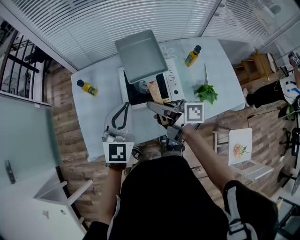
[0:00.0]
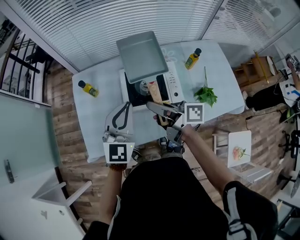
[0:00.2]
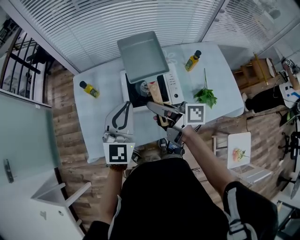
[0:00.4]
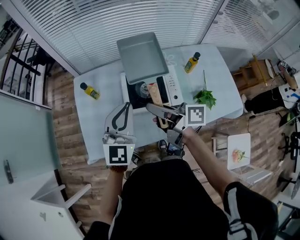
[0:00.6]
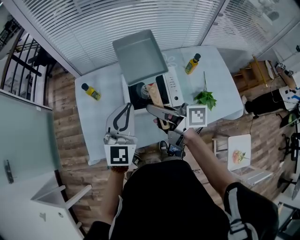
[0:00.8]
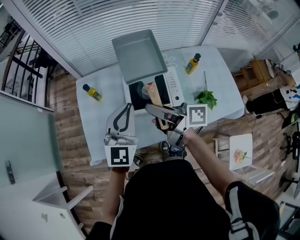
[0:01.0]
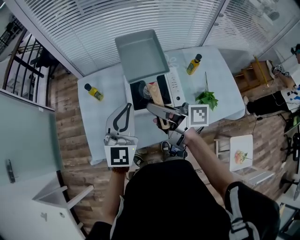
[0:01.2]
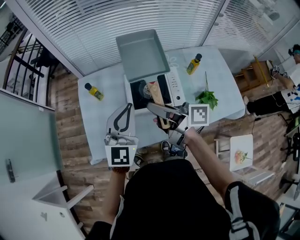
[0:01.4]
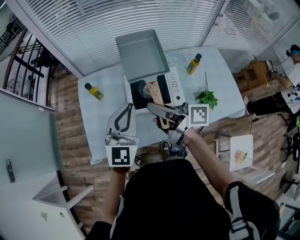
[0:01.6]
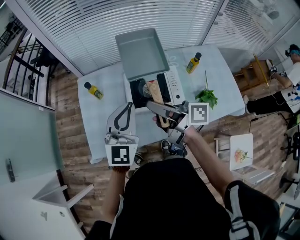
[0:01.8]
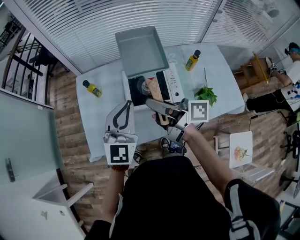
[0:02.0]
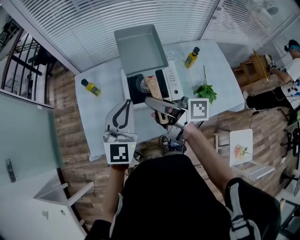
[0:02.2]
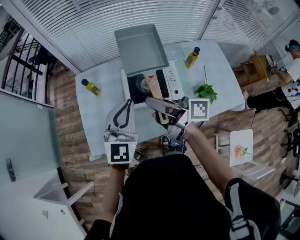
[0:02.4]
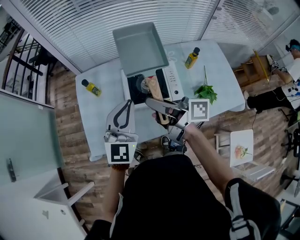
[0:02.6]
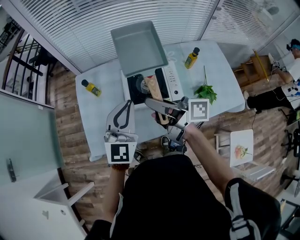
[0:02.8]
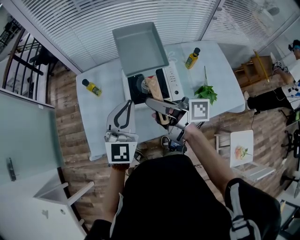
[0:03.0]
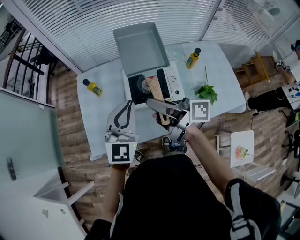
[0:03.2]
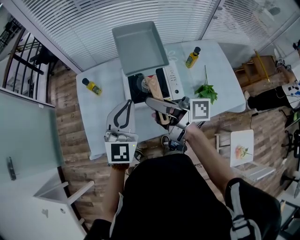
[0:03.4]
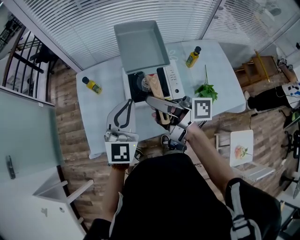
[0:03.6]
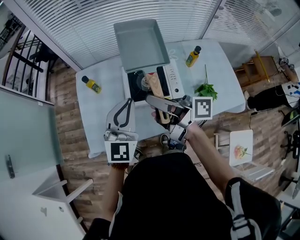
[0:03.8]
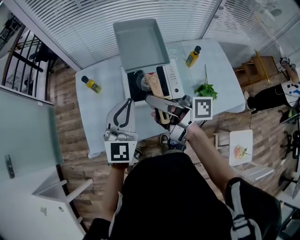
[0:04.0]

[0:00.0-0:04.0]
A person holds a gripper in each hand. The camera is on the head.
0:00.0 to 0:01.4: The right gripper goes approximately 5 cm upward.
0:01.4 to 0:02.6: The two grippers keep their place.
0:02.6 to 0:04.0: There are only small adjustments of the grippers.

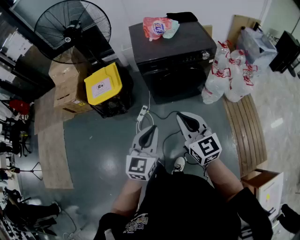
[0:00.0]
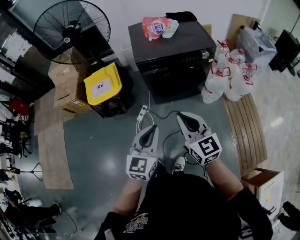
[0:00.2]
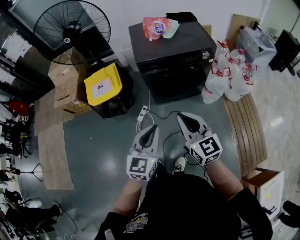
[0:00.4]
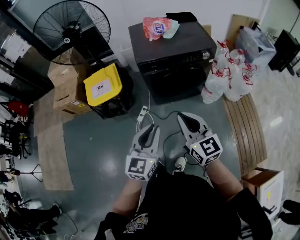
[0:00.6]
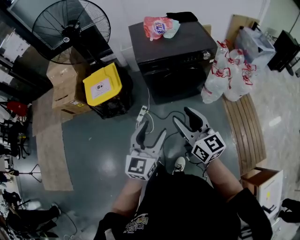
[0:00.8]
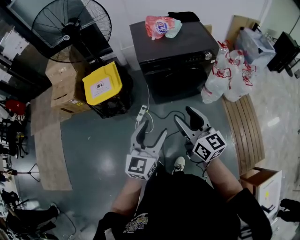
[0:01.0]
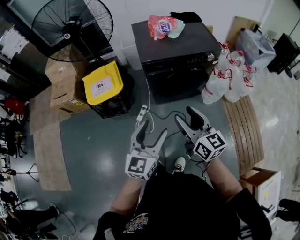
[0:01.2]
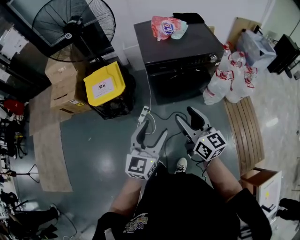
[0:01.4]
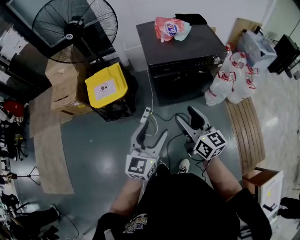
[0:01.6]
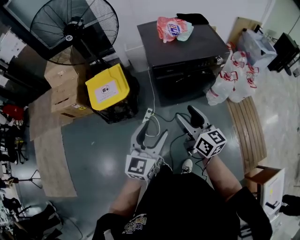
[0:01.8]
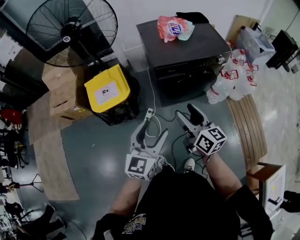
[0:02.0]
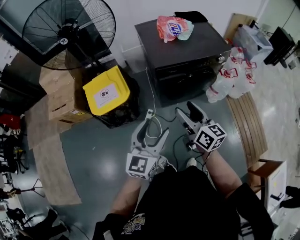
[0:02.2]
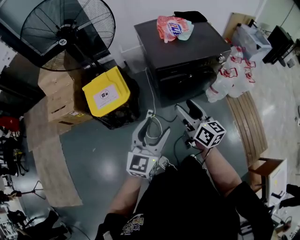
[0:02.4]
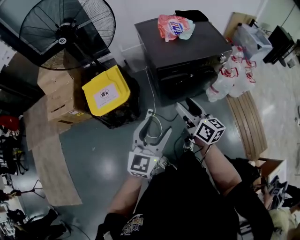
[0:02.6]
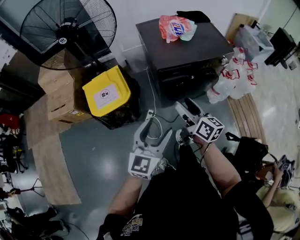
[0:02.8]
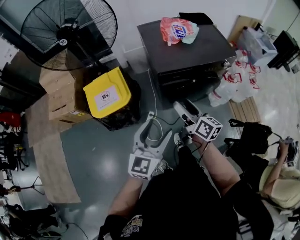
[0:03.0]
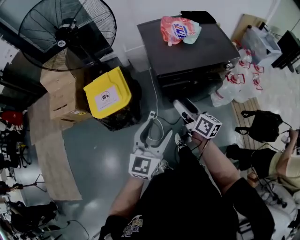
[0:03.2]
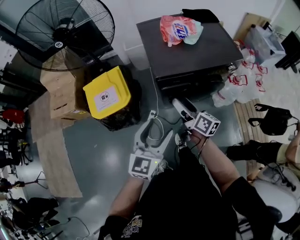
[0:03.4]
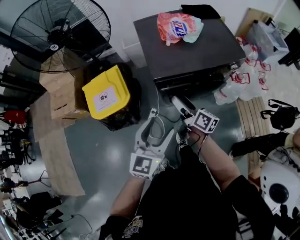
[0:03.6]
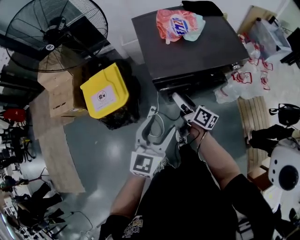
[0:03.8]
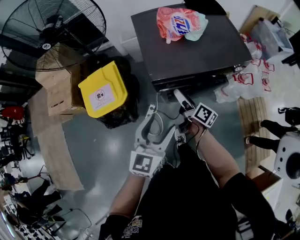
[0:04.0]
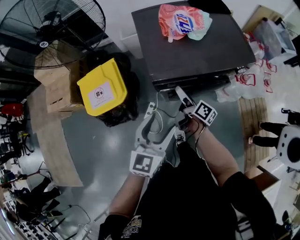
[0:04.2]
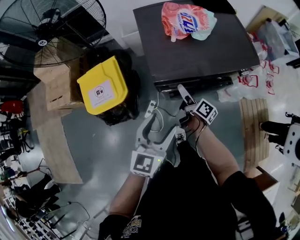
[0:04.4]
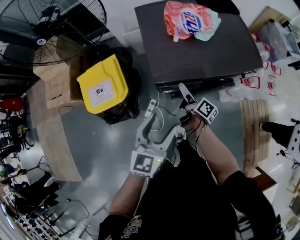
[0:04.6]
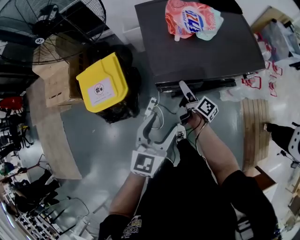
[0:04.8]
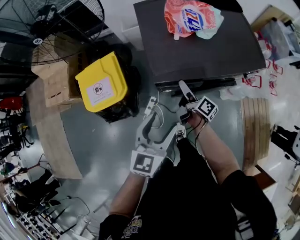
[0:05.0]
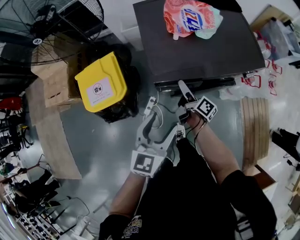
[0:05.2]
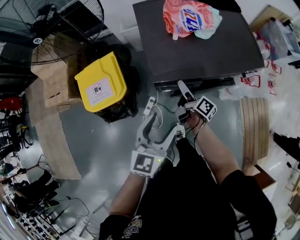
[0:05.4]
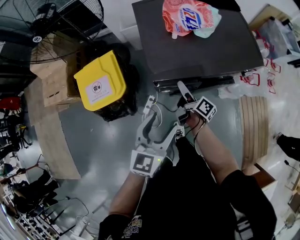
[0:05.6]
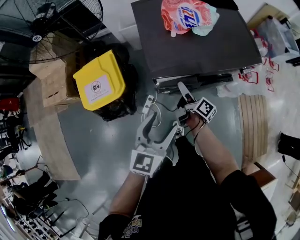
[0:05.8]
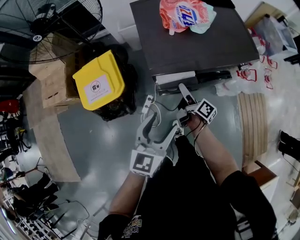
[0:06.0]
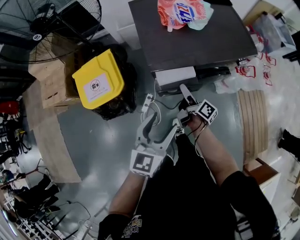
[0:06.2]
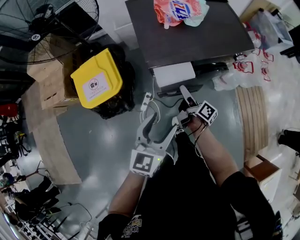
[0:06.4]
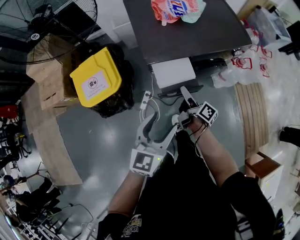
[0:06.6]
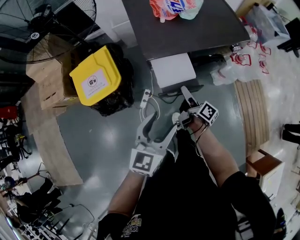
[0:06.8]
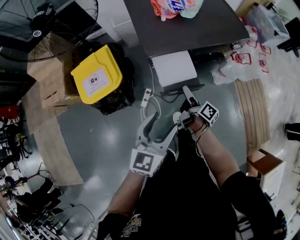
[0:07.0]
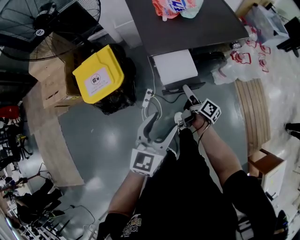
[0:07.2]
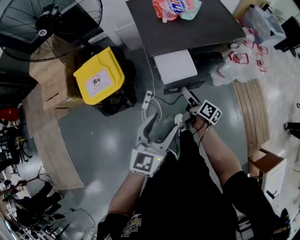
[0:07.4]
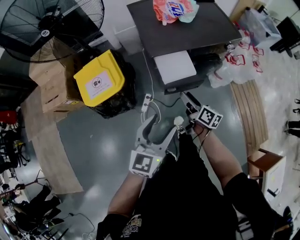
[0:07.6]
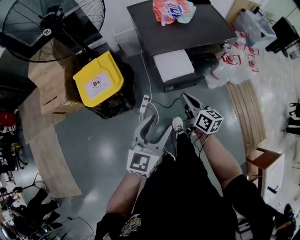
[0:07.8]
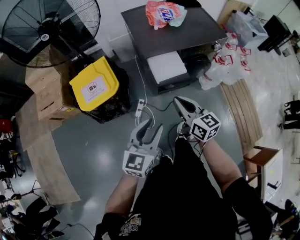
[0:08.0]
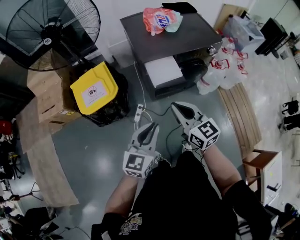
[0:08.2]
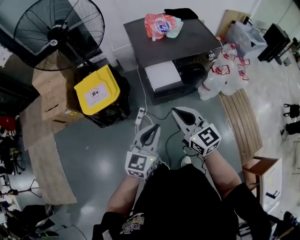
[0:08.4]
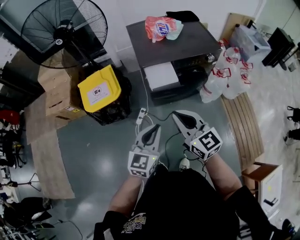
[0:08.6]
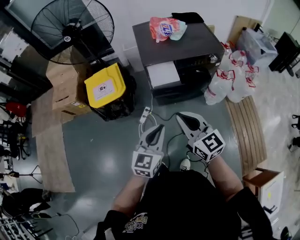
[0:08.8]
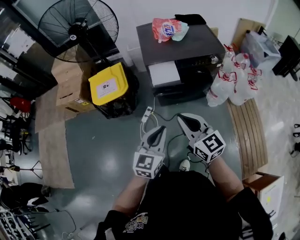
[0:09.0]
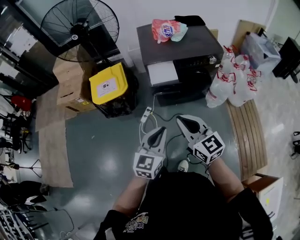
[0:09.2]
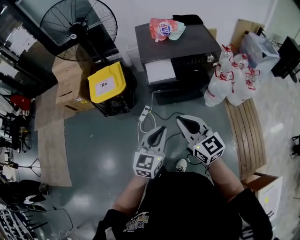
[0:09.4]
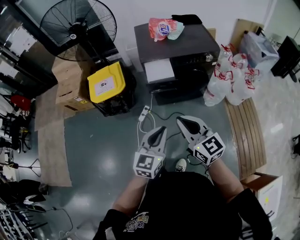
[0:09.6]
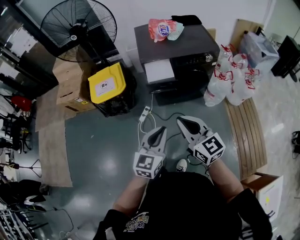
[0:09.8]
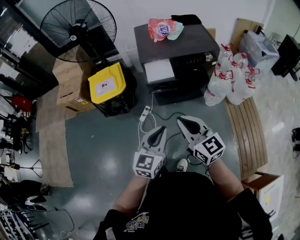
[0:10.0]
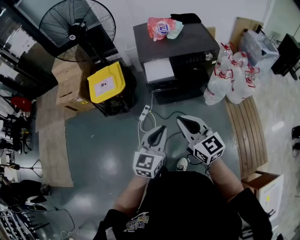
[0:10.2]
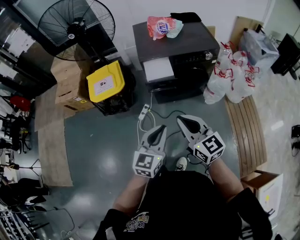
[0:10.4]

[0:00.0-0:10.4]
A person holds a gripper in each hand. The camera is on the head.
0:00.0 to 0:01.4: The left gripper travels to the left by some 5 cm, and opens. The right gripper goes about 5 cm to the left and forward, and opens up.
0:01.4 to 0:03.0: Both grippers travel together forward and to the left, approximately 15 cm. The right gripper rotates roughly 30 degrees.
0:03.0 to 0:04.4: The left gripper travels forward and to the right by roughly 20 cm. The right gripper heads forward and downward, covering some 25 cm, and swivels about 30 degrees.
0:04.4 to 0:06.0: The grippers move only a little.
0:06.0 to 0:07.4: Both grippers travel together backward, roughly 10 cm.
0:07.4 to 0:09.0: The left gripper travels backward and to the right by roughly 15 cm, and closes up. Meanwhile the right gripper is displaced upward and backward by some 35 cm, twists some 60 degrees counterclockwise, seen from behind, and closes.
0:09.0 to 0:10.4: The right gripper ends up about 5 cm from where it was; the left gripper changes place by roughly 5 cm.

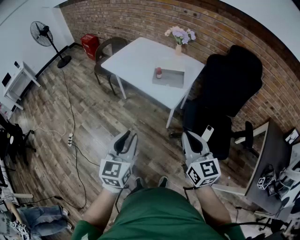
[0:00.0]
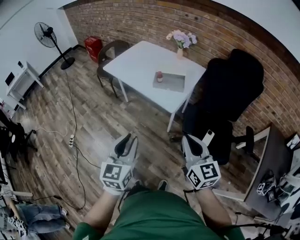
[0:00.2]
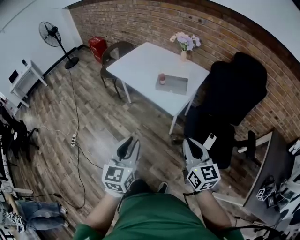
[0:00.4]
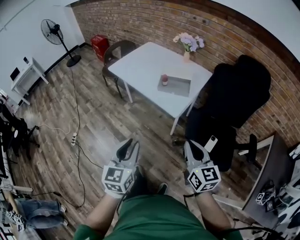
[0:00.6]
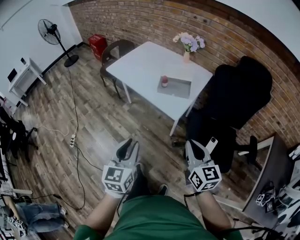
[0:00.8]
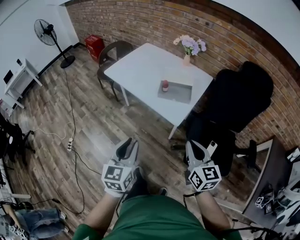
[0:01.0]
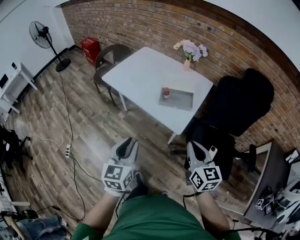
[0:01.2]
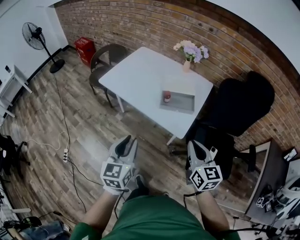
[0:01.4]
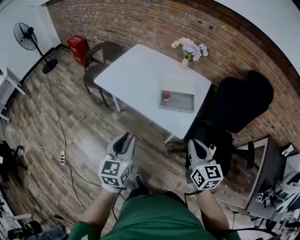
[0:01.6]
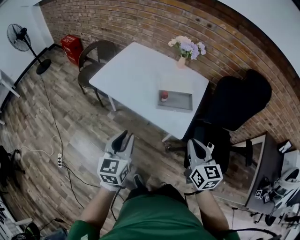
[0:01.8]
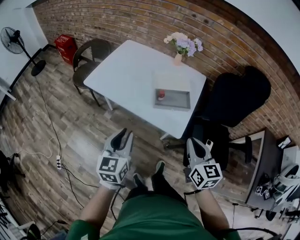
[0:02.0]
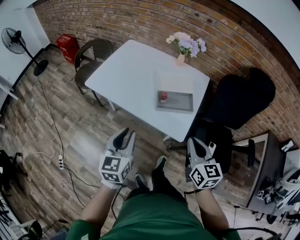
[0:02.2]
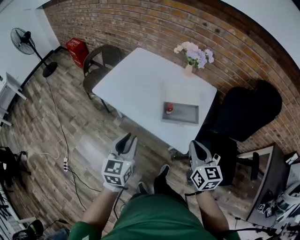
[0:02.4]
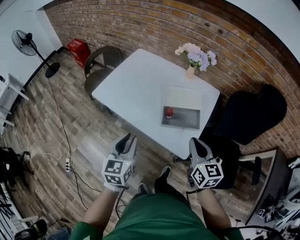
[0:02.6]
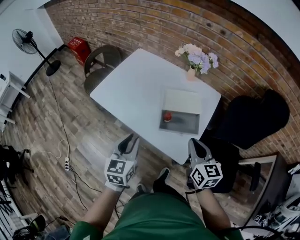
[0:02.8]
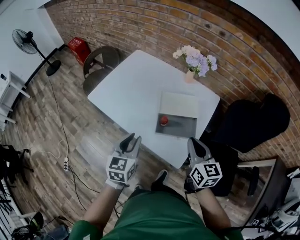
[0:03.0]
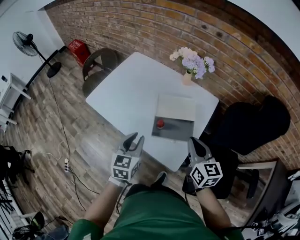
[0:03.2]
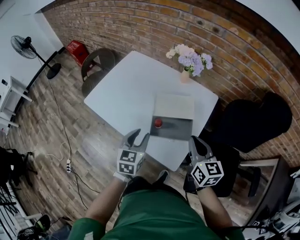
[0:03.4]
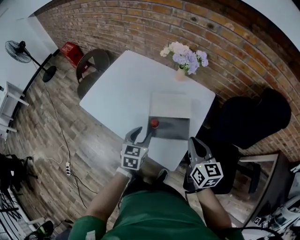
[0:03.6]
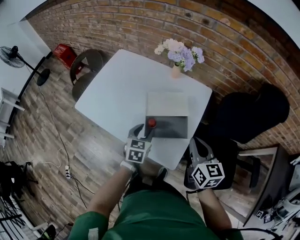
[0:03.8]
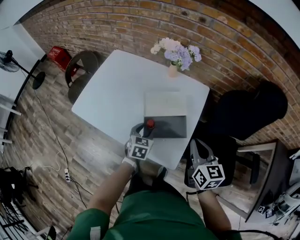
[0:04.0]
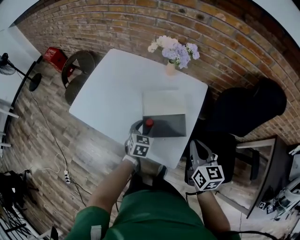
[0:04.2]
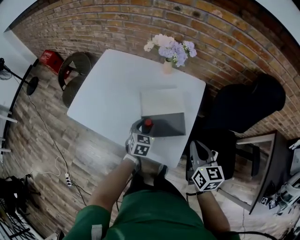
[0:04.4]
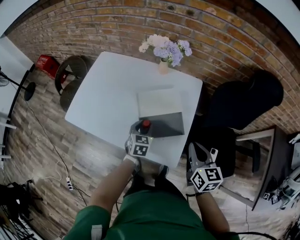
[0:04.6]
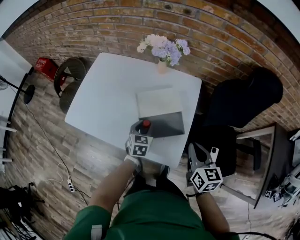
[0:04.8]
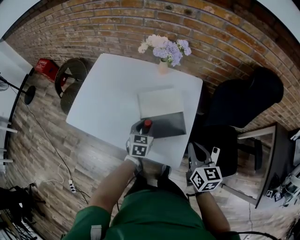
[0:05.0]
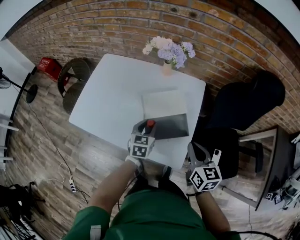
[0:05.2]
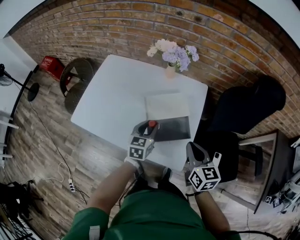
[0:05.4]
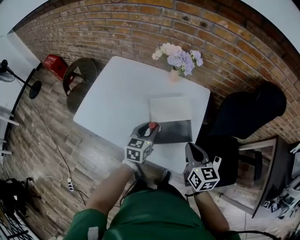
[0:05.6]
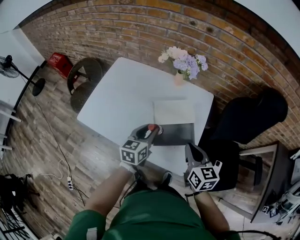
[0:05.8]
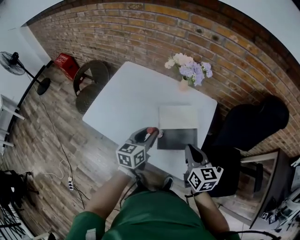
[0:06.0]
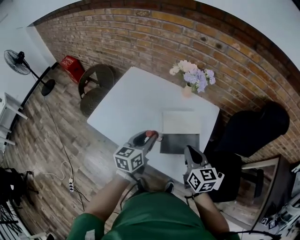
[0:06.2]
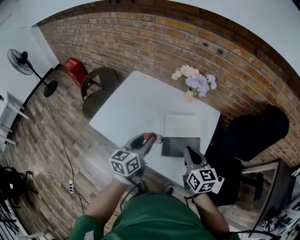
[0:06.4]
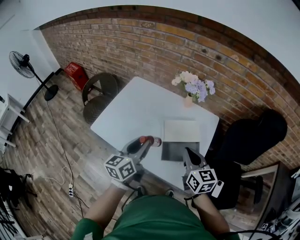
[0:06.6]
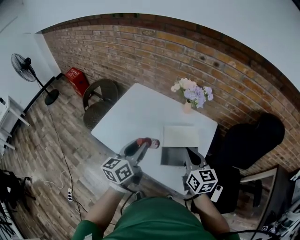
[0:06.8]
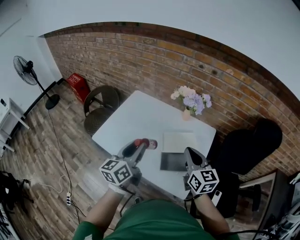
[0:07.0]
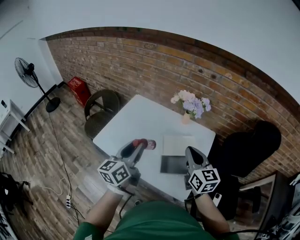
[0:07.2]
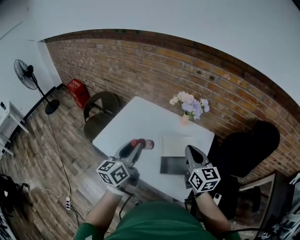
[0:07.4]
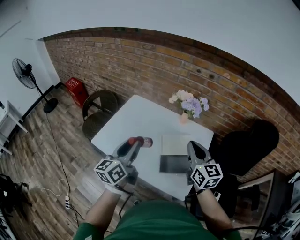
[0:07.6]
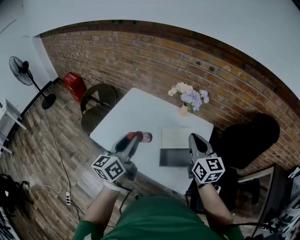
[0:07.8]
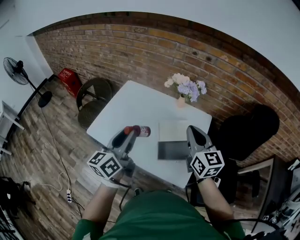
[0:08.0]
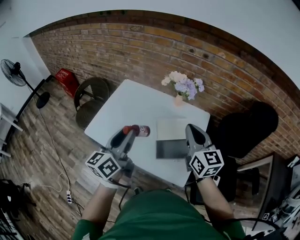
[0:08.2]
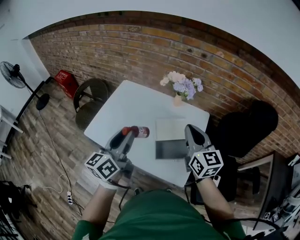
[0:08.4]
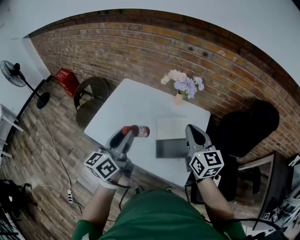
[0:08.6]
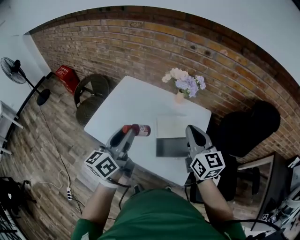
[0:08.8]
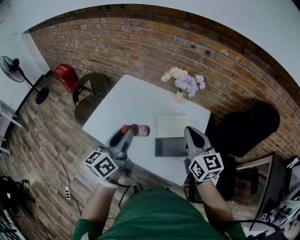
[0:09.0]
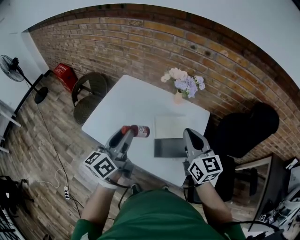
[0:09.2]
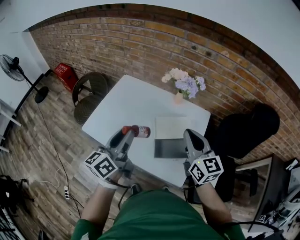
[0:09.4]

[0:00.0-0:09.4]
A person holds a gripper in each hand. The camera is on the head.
0:00.0 to 0:01.6: The two grippers go about 25 cm forward.
0:01.6 to 0:03.2: The right gripper travels forward by approximately 25 cm, while the left gripper is displaced forward and to the right by some 25 cm.
0:03.2 to 0:04.8: The left gripper travels downward, forward and to the right by some 20 cm. The right gripper changes place by roughly 5 cm.
0:04.8 to 0:06.2: The right gripper travels to the left by approximately 10 cm. The left gripper shifts about 20 cm upward and to the left, and turns by about 30 degrees.
0:06.2 to 0:07.8: The left gripper shifts approximately 15 cm upward and to the left, and rotates roughly 20 degrees. The right gripper heads upward, covering roughly 15 cm.
0:07.8 to 0:09.4: The grippers stay close to where they were, moving slightly.
